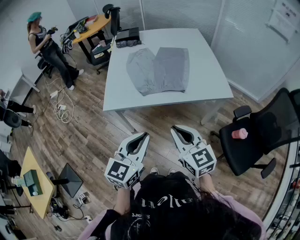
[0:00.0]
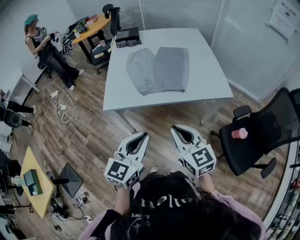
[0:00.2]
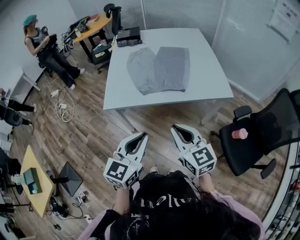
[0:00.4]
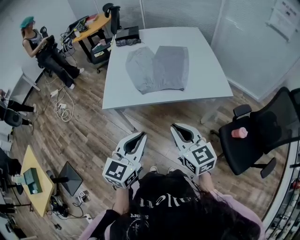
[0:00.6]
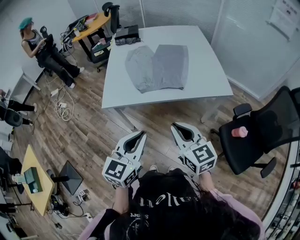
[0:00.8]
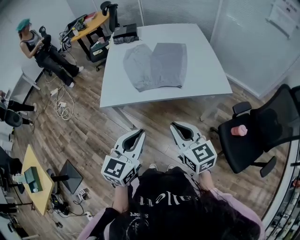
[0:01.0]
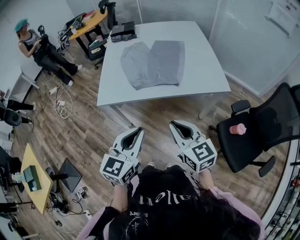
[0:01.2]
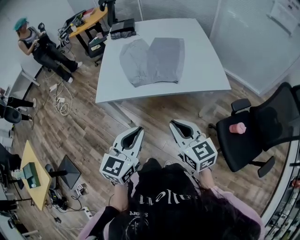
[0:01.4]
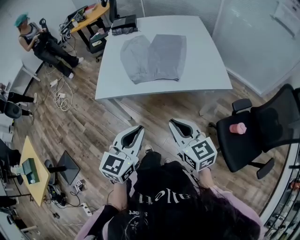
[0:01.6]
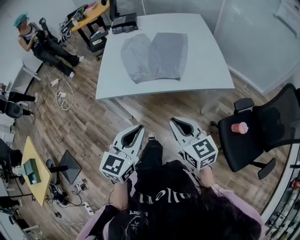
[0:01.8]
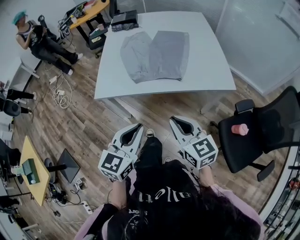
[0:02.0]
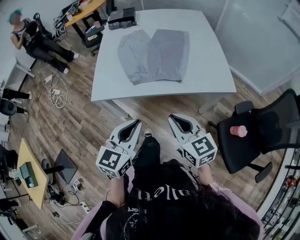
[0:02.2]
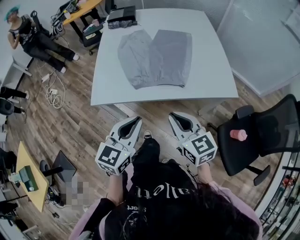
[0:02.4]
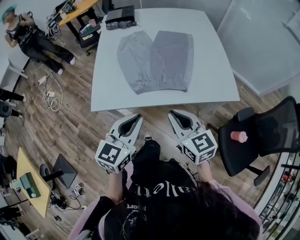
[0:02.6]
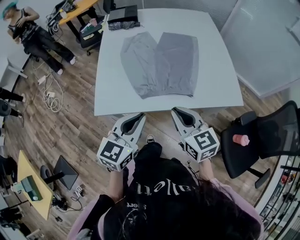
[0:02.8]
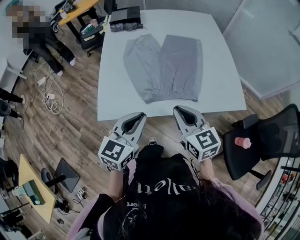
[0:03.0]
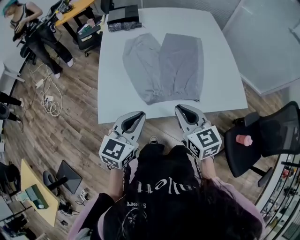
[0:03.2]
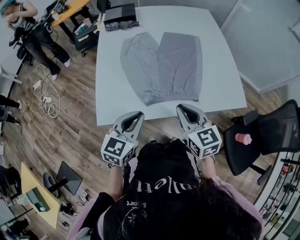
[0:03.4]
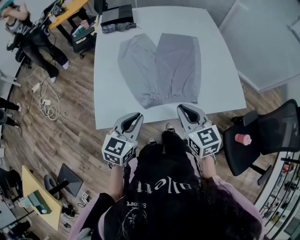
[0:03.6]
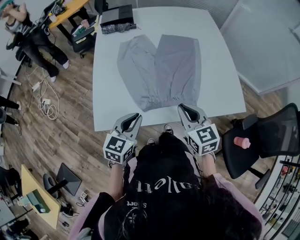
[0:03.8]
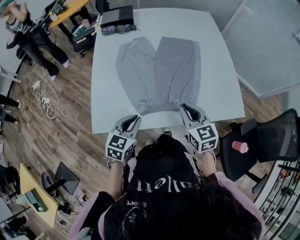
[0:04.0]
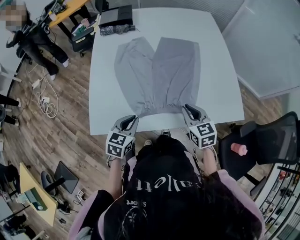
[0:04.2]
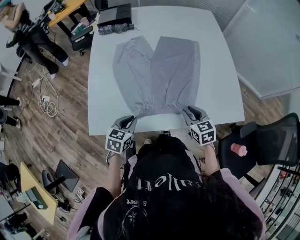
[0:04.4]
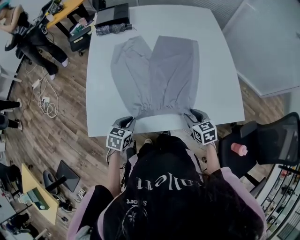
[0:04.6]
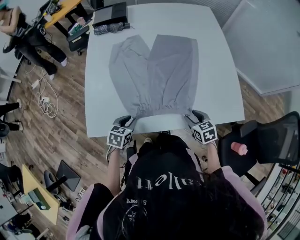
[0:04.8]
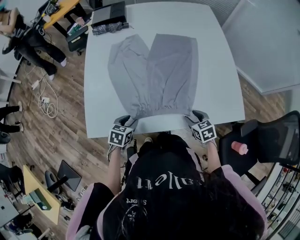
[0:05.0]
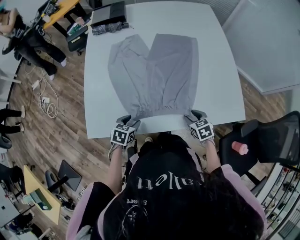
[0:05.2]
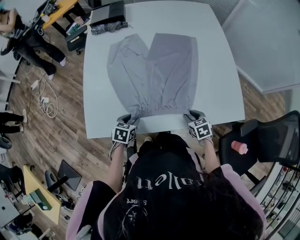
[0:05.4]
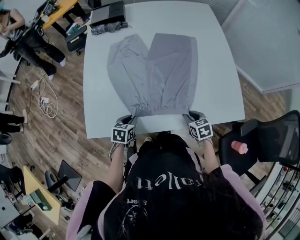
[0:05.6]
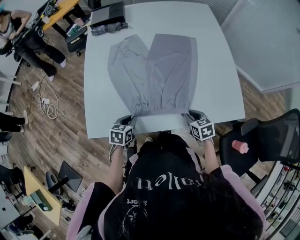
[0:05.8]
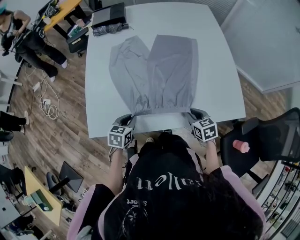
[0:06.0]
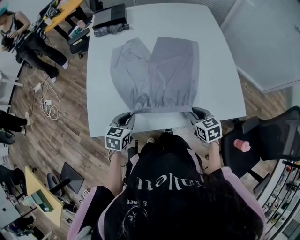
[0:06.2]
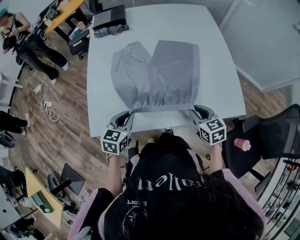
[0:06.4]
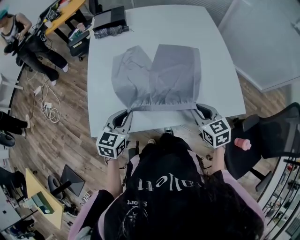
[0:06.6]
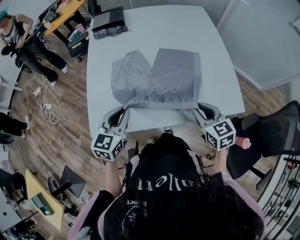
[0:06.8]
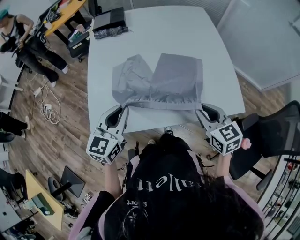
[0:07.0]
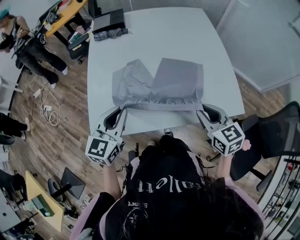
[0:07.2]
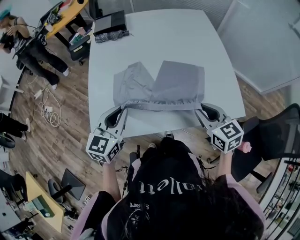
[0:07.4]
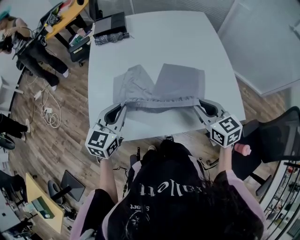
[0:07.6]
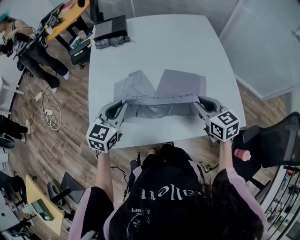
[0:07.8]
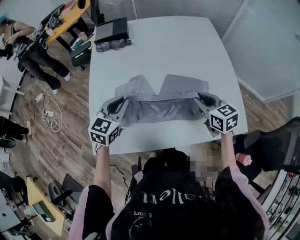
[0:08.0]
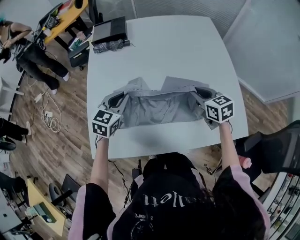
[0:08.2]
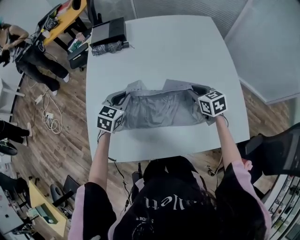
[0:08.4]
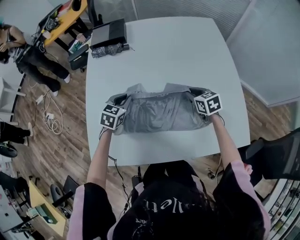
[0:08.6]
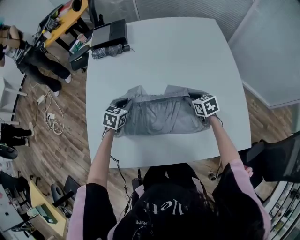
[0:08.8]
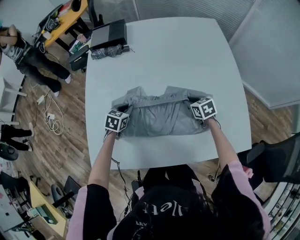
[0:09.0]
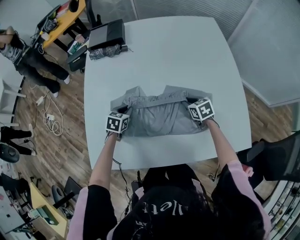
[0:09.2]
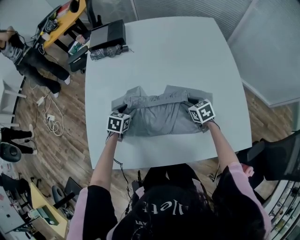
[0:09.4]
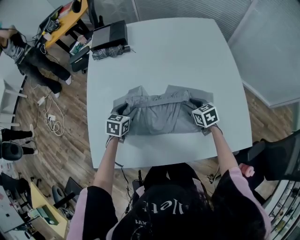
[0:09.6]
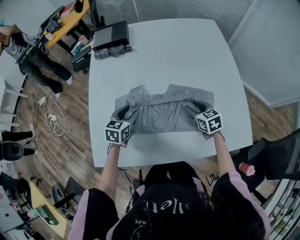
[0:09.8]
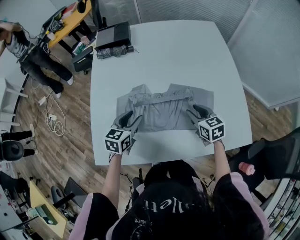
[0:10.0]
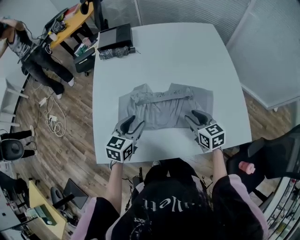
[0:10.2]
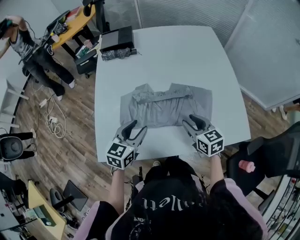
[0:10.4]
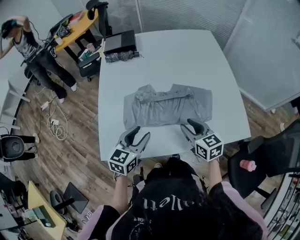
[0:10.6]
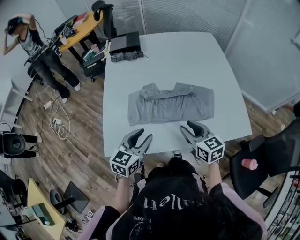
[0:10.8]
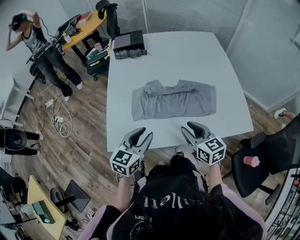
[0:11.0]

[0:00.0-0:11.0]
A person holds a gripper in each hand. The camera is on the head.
0.0 to 1.6 s: Both grippers move to the right, approximately 5 cm.
1.6 to 3.2 s: The right gripper goes about 25 cm forward, while the left gripper travels forward and to the left by approximately 30 cm.
3.2 to 4.8 s: The right gripper heads downward and to the right, covering roughly 30 cm, rotates some 30 degrees, and opens up; the left gripper shifts roughly 25 cm downward, and angles its fingers downward, by roughly 30 degrees.
4.8 to 6.2 s: The left gripper is displaced upward by some 5 cm, and opens and closes again.
6.2 to 7.8 s: The two grippers go about 15 cm upward and forward. The left gripper changes its angle by roughly 20 degrees.
7.8 to 9.4 s: Both grippers travel together downward and forward, some 25 cm. The right gripper turns by approximately 20 degrees, while the left gripper turns by approximately 30 degrees, and opens its fingers.
9.4 to 11.0 s: The left gripper travels backward and upward by about 35 cm, and tips its fingers upward by roughly 30 degrees, while the right gripper heads backward, upward and to the left, covering approximately 35 cm, and turns by approximately 30 degrees.

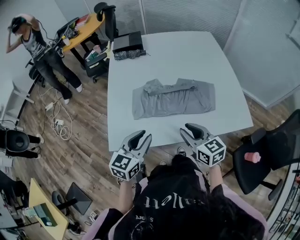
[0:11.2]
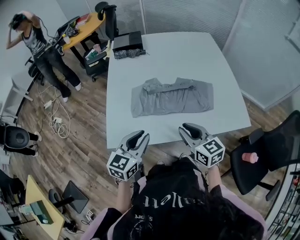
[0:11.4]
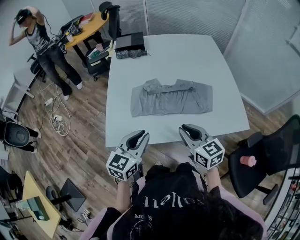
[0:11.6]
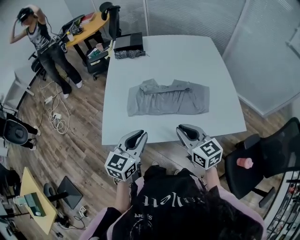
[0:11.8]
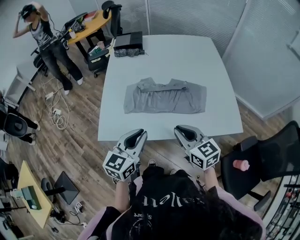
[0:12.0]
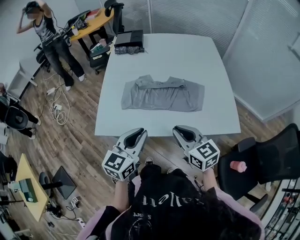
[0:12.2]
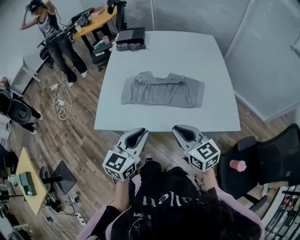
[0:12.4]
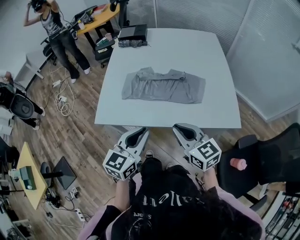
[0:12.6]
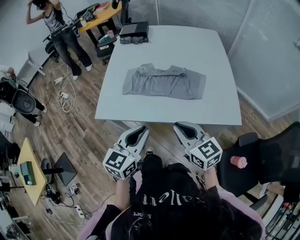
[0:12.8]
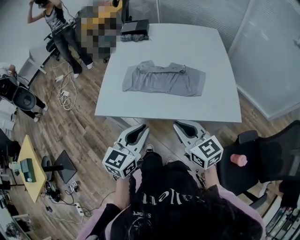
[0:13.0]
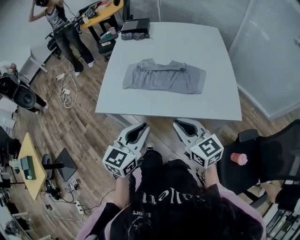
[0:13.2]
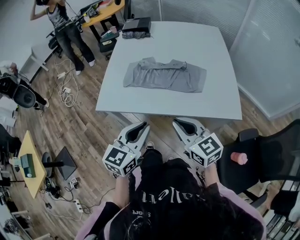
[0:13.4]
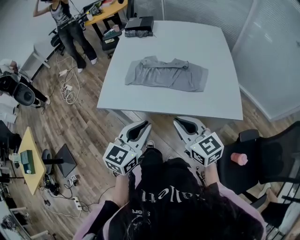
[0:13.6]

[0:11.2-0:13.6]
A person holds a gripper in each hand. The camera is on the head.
11.2 to 12.4 s: The right gripper travels backward and to the right by some 10 cm, and closes up. Meanwhile the left gripper travels to the right and backward by approximately 15 cm.
12.4 to 13.6 s: Both grippers move backward, approximately 5 cm.

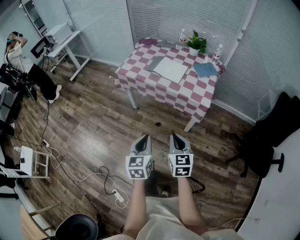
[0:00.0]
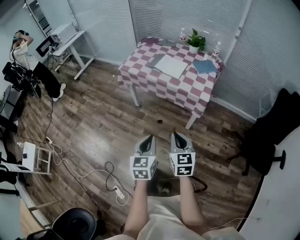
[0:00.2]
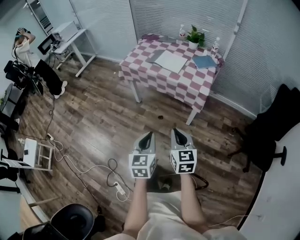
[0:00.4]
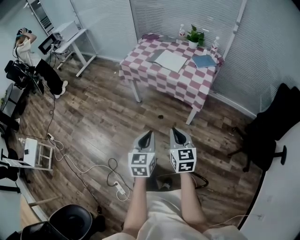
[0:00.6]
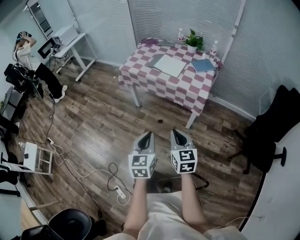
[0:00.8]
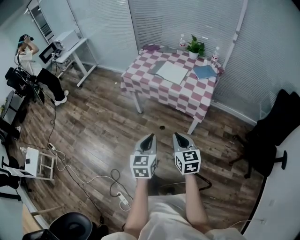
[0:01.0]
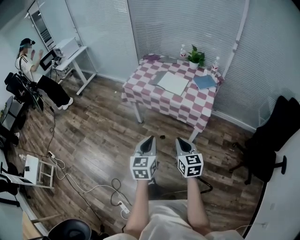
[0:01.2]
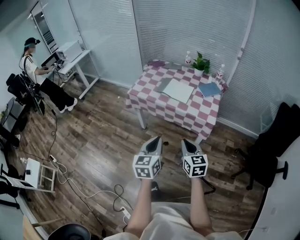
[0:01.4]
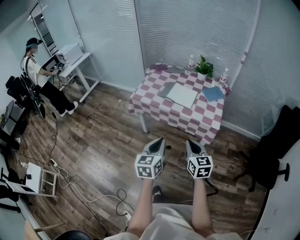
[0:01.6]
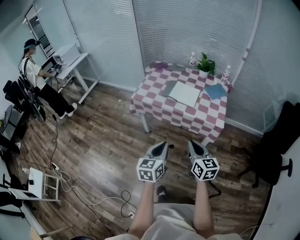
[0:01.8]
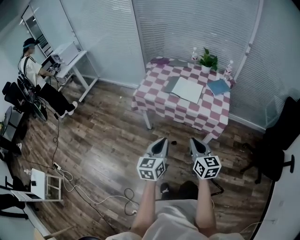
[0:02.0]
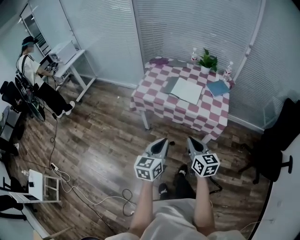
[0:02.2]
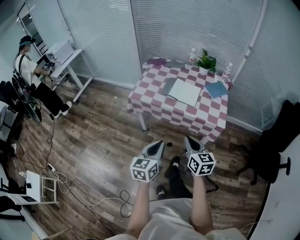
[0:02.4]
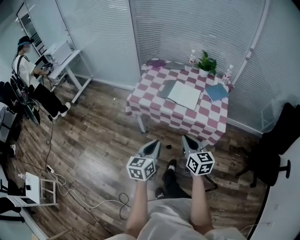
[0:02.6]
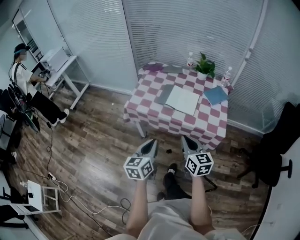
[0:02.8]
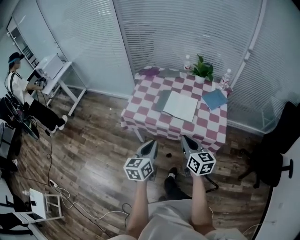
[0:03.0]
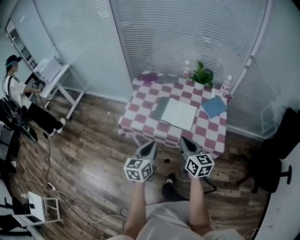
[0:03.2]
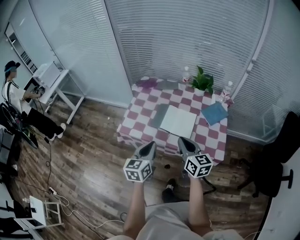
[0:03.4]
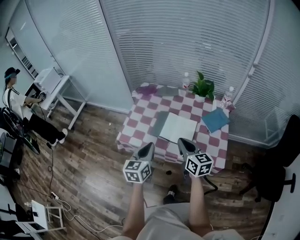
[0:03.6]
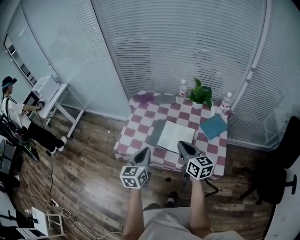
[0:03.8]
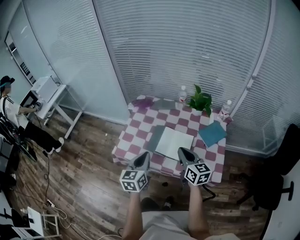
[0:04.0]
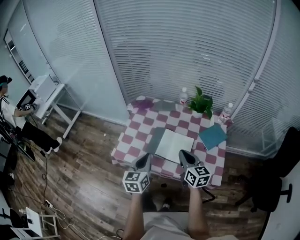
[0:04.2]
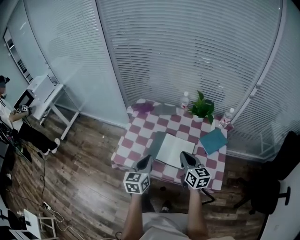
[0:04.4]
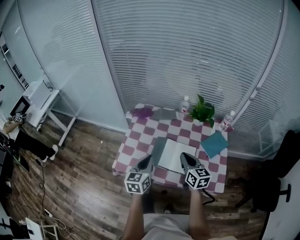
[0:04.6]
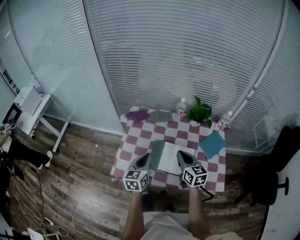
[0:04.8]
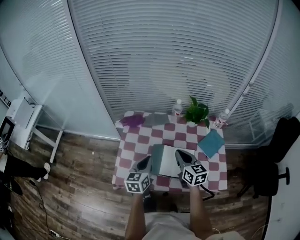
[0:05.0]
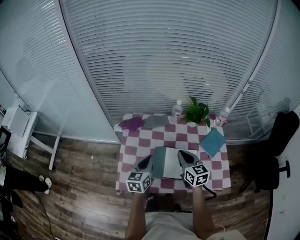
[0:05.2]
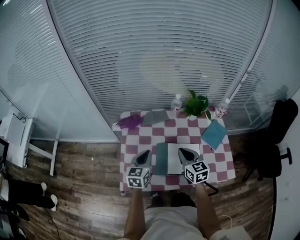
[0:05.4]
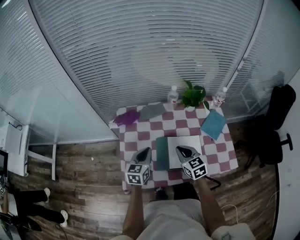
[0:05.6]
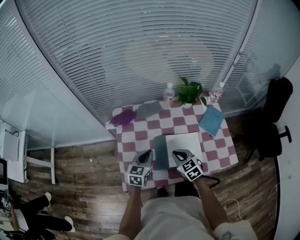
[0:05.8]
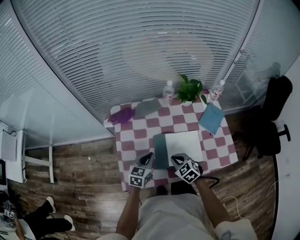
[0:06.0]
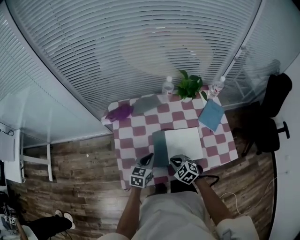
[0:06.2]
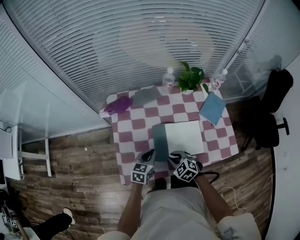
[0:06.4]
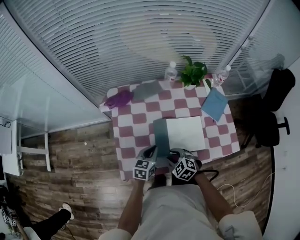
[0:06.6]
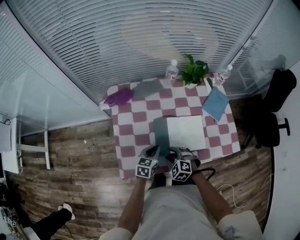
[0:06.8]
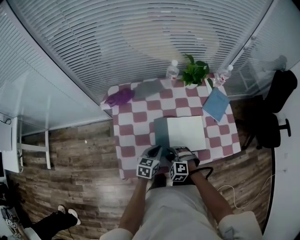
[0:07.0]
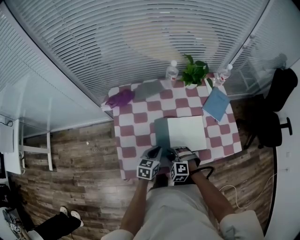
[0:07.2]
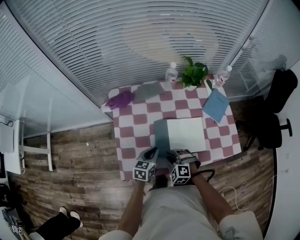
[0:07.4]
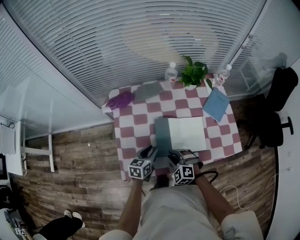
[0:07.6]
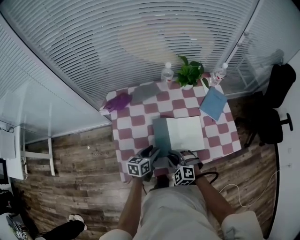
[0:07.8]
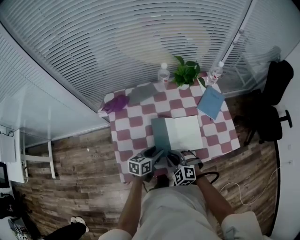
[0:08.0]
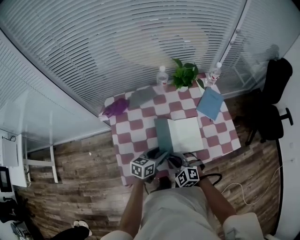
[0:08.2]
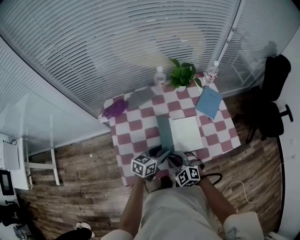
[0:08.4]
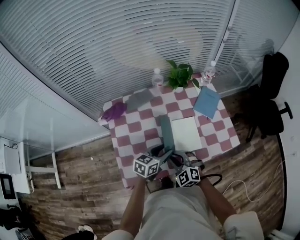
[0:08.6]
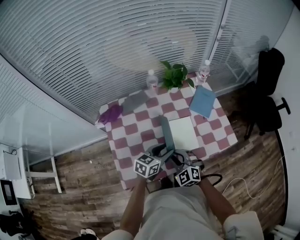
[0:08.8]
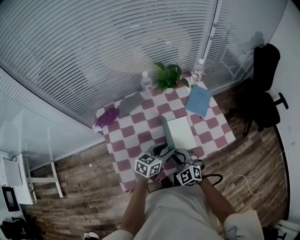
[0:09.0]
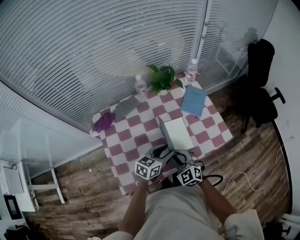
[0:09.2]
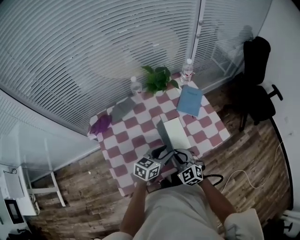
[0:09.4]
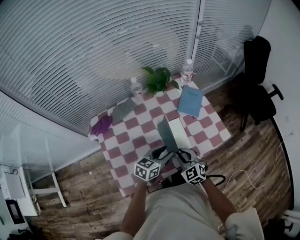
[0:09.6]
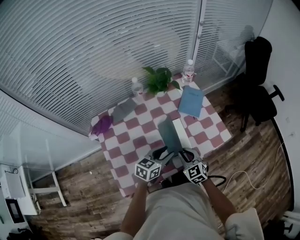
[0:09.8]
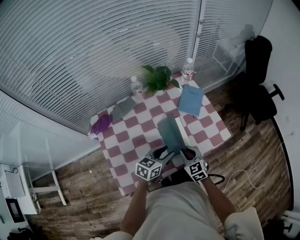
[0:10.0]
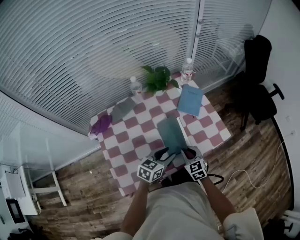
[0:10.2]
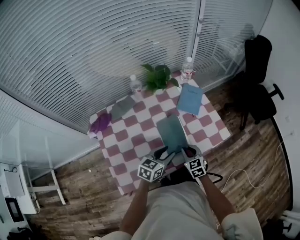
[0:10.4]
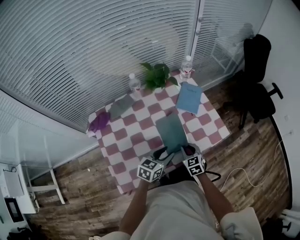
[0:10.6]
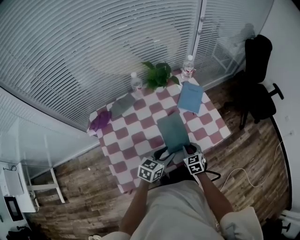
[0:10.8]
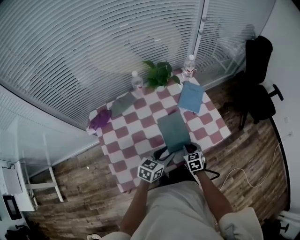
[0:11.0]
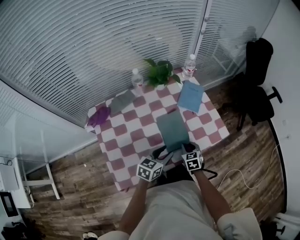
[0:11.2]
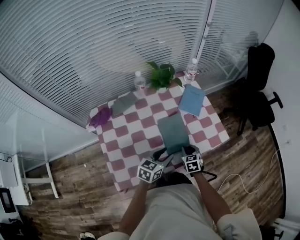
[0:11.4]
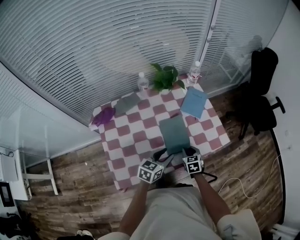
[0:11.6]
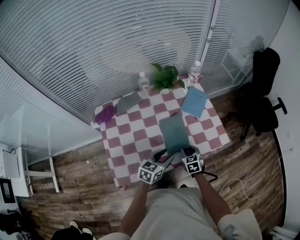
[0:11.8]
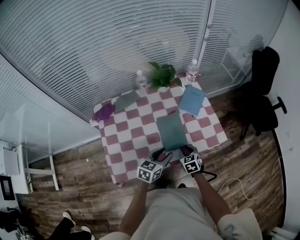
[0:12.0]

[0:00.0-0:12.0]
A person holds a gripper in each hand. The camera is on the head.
0.0 to 1.6 s: Both grippers travel together forward and upward, some 10 cm.
1.6 to 3.0 s: Both grippers move forward, roughly 20 cm.
3.0 to 4.4 s: Both grippers move forward, about 25 cm.
4.4 to 6.0 s: The right gripper shifts about 20 cm downward and to the left, and tilts its fingers about 30 degrees downward, while the left gripper moves forward and downward, about 20 cm, and rotates approximately 40 degrees.
6.0 to 7.6 s: The right gripper rotates some 30 degrees, and opens up, while the left gripper goes roughly 5 cm downward, and opens.
7.6 to 9.0 s: The right gripper goes approximately 10 cm upward and to the right, and turns by some 30 degrees. The left gripper goes approximately 15 cm to the right and upward, and swivels about 30 degrees.
9.0 to 10.4 s: The right gripper moves to the right, downward and forward, roughly 15 cm, and changes its angle by roughly 30 degrees.
10.4 to 12.0 s: There are only small adjustments of the grippers.
